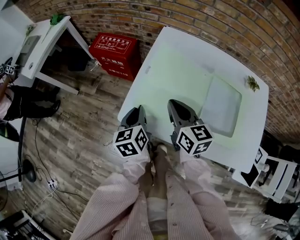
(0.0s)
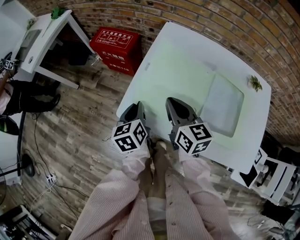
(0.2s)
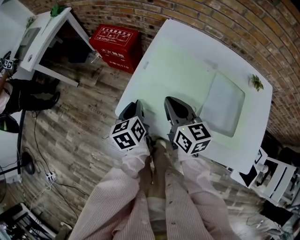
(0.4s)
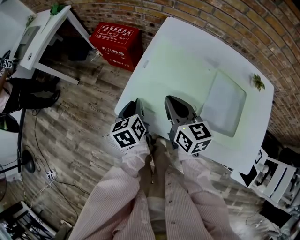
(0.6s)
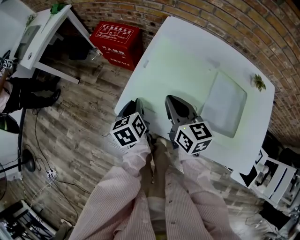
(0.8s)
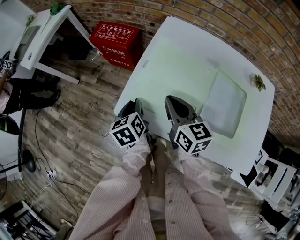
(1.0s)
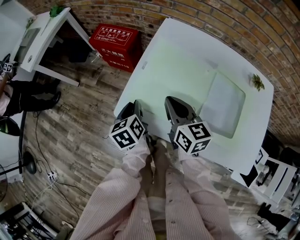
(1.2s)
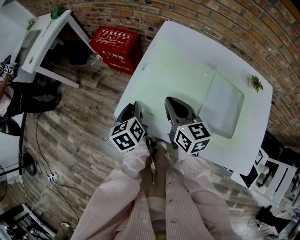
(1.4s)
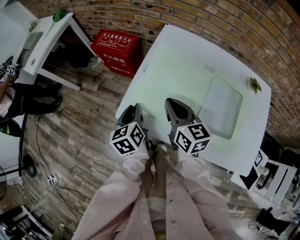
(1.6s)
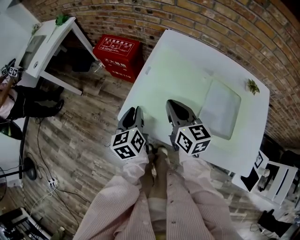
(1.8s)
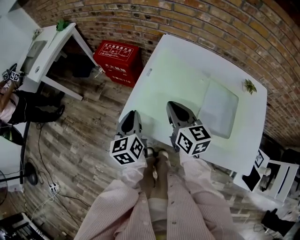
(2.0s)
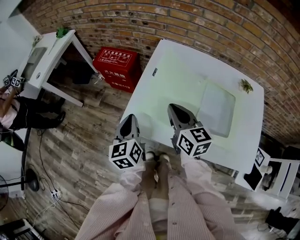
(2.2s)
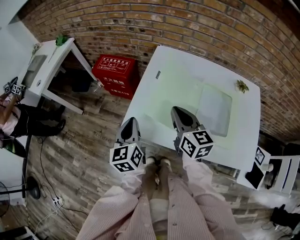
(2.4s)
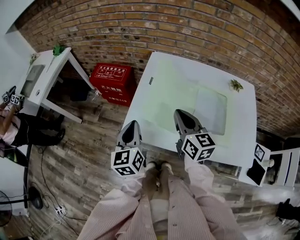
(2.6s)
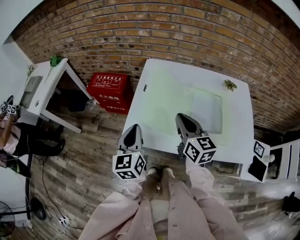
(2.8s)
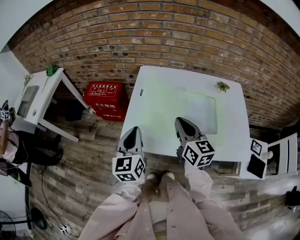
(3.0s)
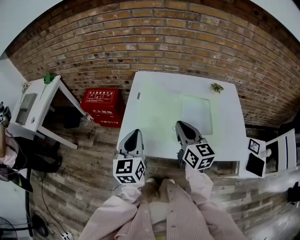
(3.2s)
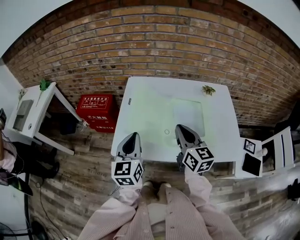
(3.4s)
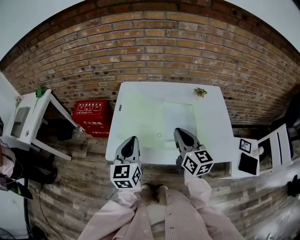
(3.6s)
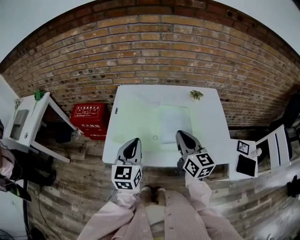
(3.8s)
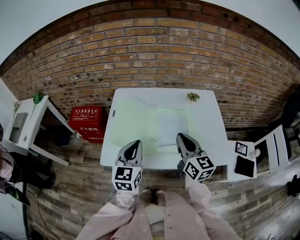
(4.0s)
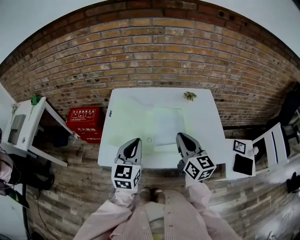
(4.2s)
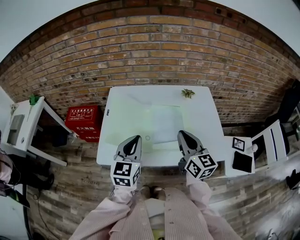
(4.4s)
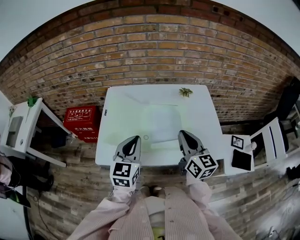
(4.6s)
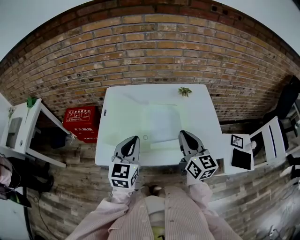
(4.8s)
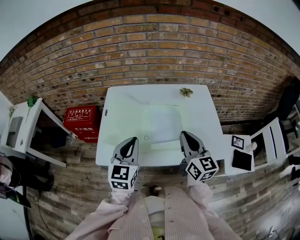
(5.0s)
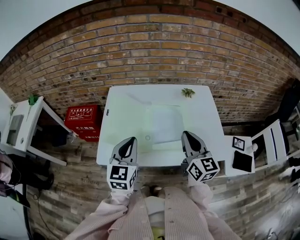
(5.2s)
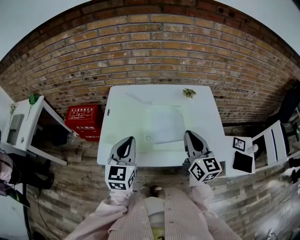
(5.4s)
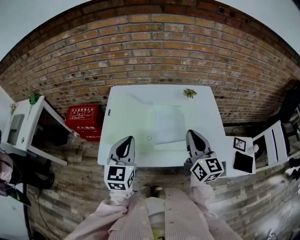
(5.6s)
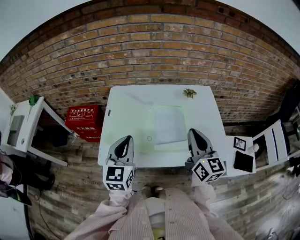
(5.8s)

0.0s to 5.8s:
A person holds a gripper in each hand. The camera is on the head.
0.0s to 1.4s: There are only small adjustments of the grippers.
1.4s to 2.8s: The right gripper heads upward, backward and to the right, covering about 10 cm, while the left gripper heads upward, covering roughly 15 cm, and turns by roughly 40 degrees.
2.8s to 4.4s: Both grippers travel together to the right, some 20 cm. The left gripper rotates approximately 30 degrees.
4.4s to 5.8s: The grippers stay close to where they were, moving slightly.

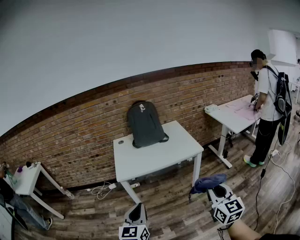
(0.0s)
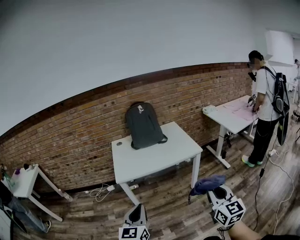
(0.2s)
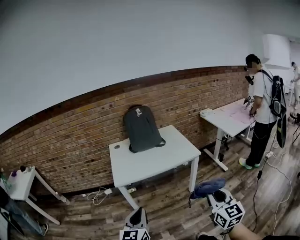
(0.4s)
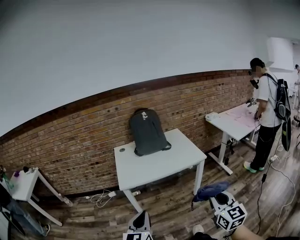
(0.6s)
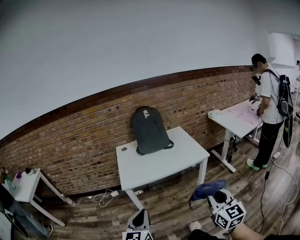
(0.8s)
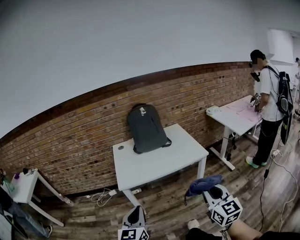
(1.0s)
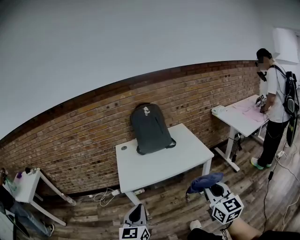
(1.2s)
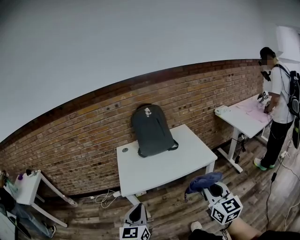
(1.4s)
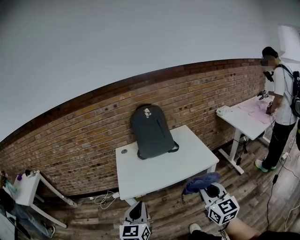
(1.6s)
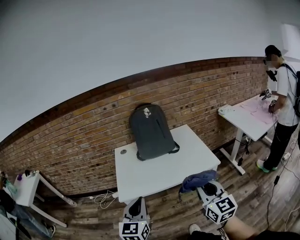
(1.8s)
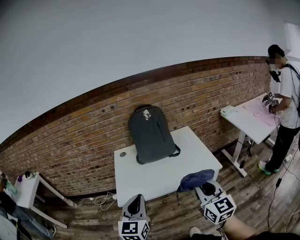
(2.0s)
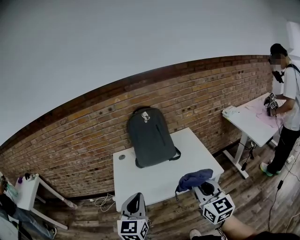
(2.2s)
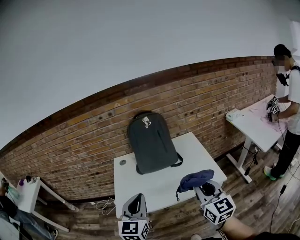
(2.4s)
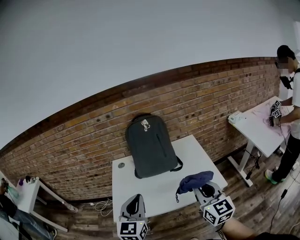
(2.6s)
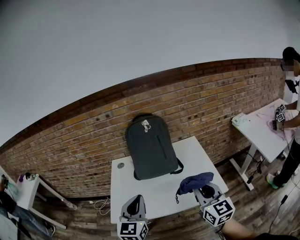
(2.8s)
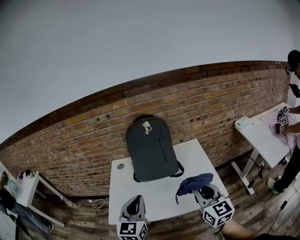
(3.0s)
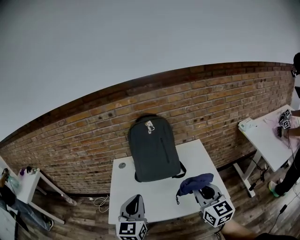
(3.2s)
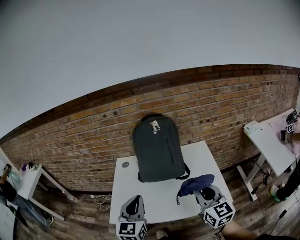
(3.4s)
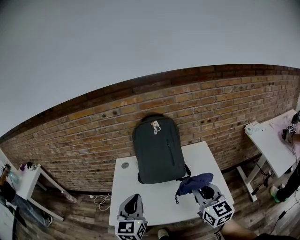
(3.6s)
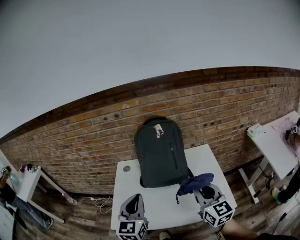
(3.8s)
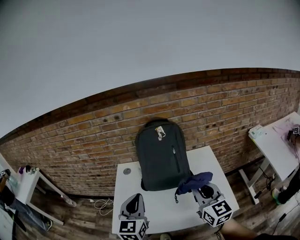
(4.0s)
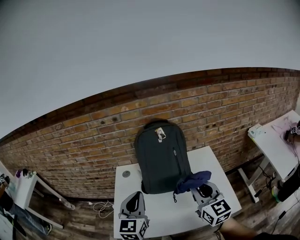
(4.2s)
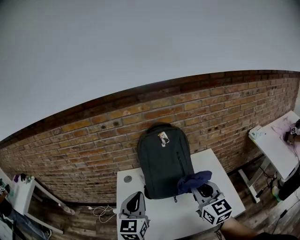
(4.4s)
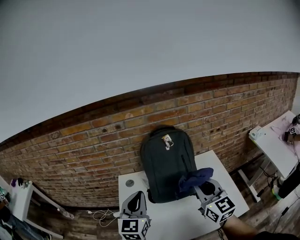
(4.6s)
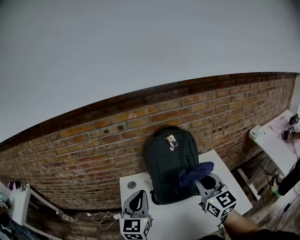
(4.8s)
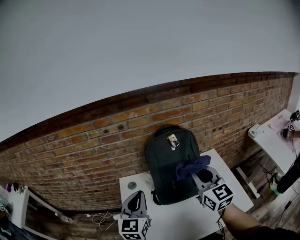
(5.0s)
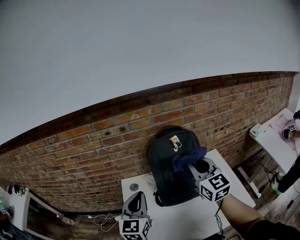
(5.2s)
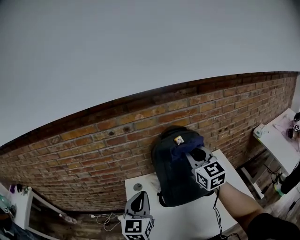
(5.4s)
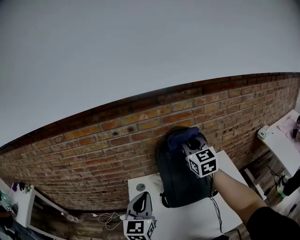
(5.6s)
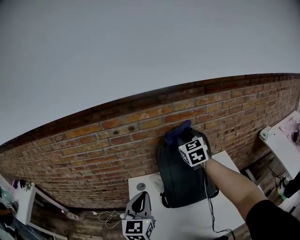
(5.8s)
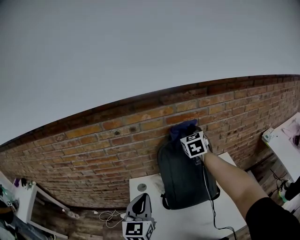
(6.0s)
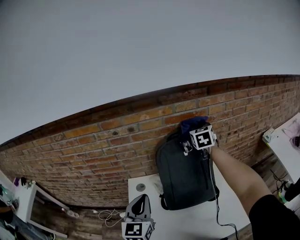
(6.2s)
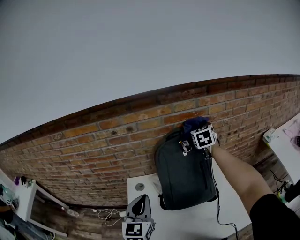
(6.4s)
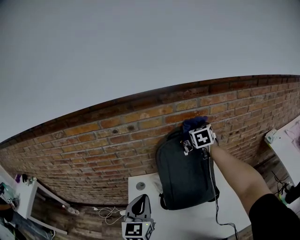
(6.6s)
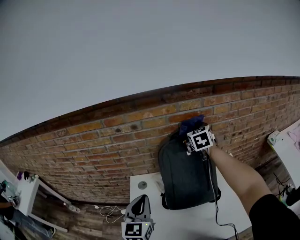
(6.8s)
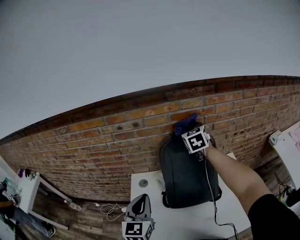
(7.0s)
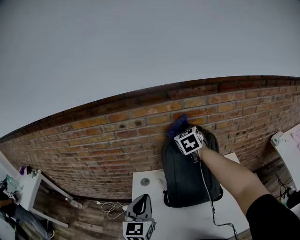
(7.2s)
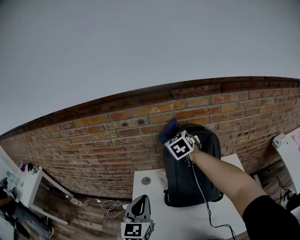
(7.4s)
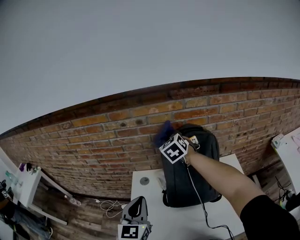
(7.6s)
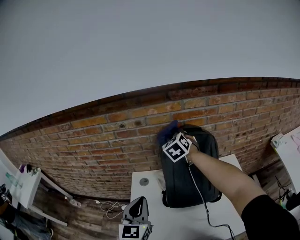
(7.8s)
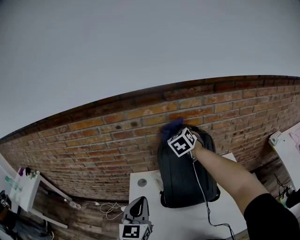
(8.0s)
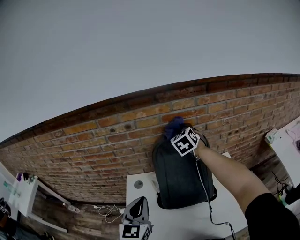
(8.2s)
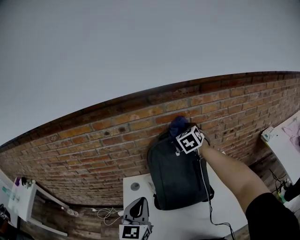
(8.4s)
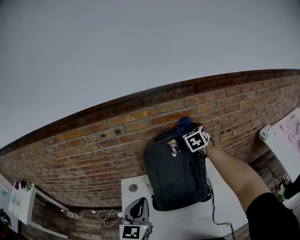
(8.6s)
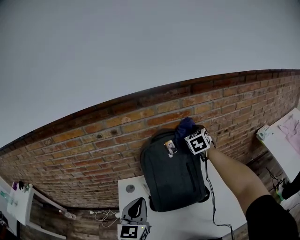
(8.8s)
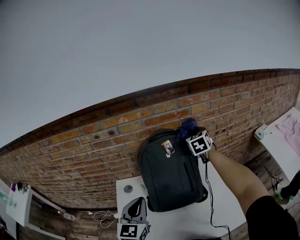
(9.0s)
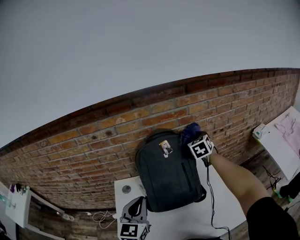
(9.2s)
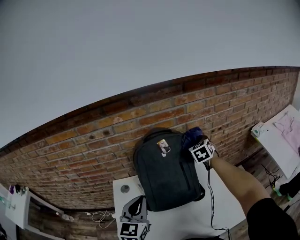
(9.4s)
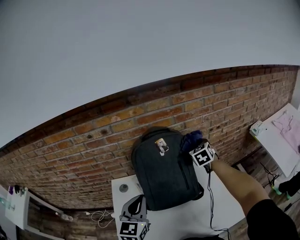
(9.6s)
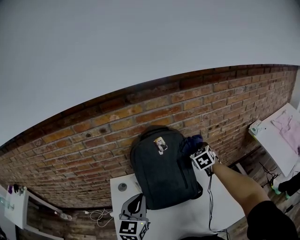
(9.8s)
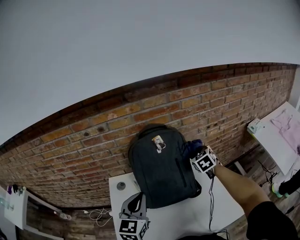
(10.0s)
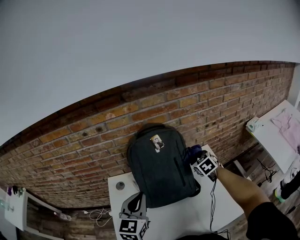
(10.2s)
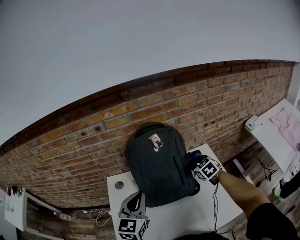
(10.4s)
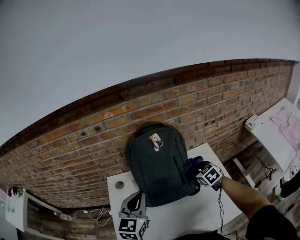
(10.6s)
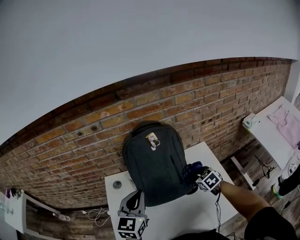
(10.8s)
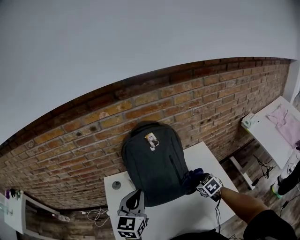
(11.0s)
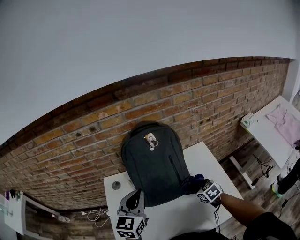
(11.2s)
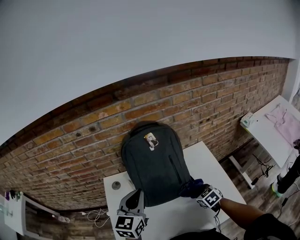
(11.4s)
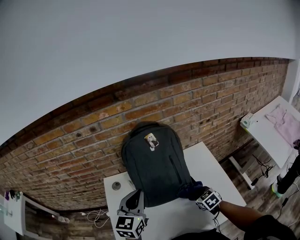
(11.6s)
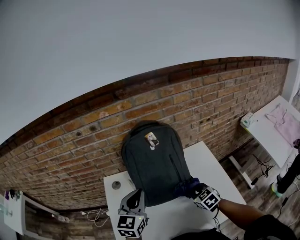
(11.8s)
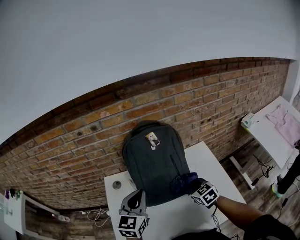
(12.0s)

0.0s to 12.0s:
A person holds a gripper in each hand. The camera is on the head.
0.0s to 1.6s: The right gripper goes some 20 cm forward and to the left; the left gripper goes some 15 cm forward.
1.6s to 3.0s: Both grippers move forward, approximately 25 cm.
3.0s to 4.4s: The two grippers go approximately 15 cm forward and to the left.
4.4s to 6.0s: The left gripper goes roughly 10 cm forward and to the left; the right gripper shifts roughly 35 cm forward, and turns by some 20 degrees.
6.0s to 7.6s: The right gripper travels to the left by about 15 cm, and changes its angle by roughly 30 degrees.
7.6s to 9.0s: The left gripper shifts approximately 10 cm to the right. The right gripper is displaced to the right by approximately 30 cm, and rotates some 30 degrees.
9.0s to 10.4s: The right gripper heads downward and backward, covering approximately 20 cm, and rotates some 20 degrees.
10.4s to 12.0s: The right gripper travels backward and to the left by approximately 15 cm.

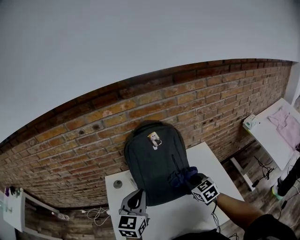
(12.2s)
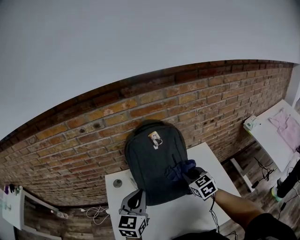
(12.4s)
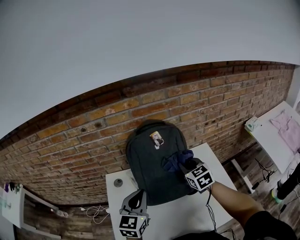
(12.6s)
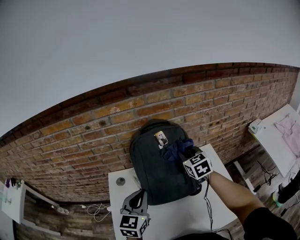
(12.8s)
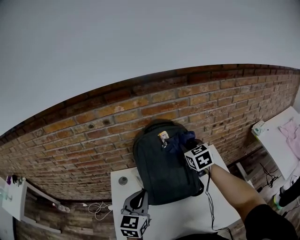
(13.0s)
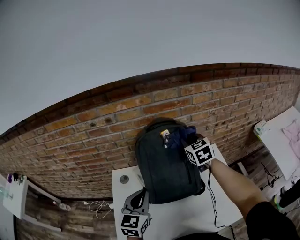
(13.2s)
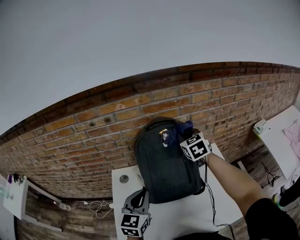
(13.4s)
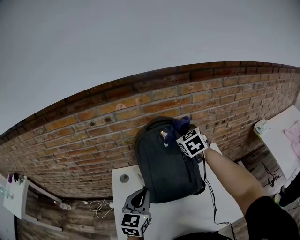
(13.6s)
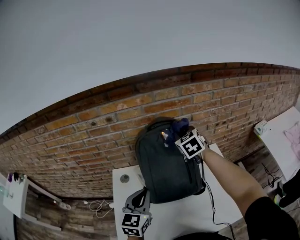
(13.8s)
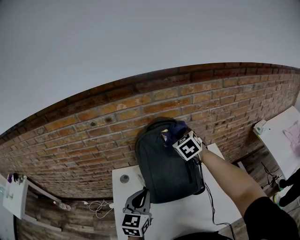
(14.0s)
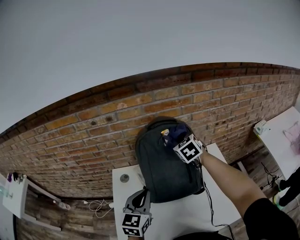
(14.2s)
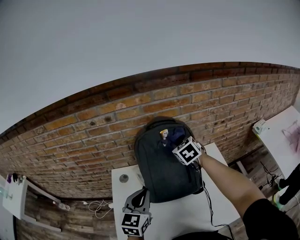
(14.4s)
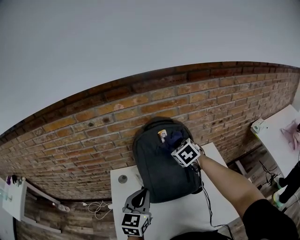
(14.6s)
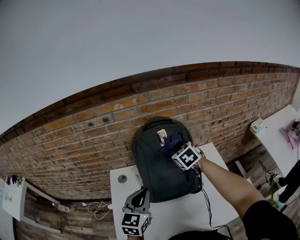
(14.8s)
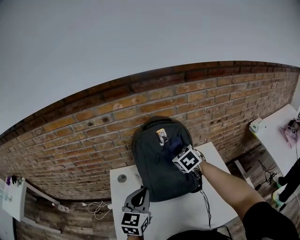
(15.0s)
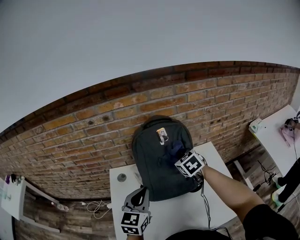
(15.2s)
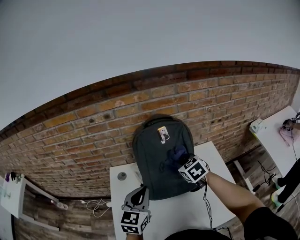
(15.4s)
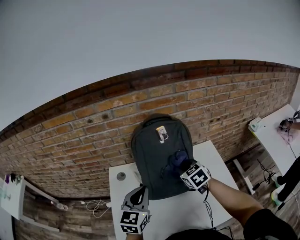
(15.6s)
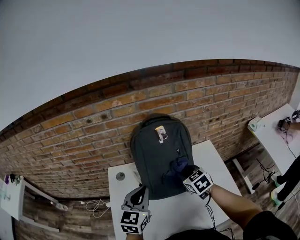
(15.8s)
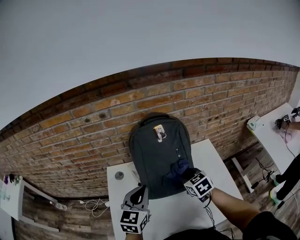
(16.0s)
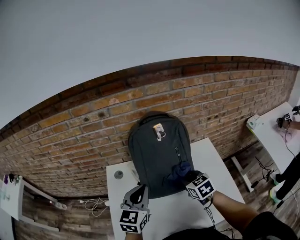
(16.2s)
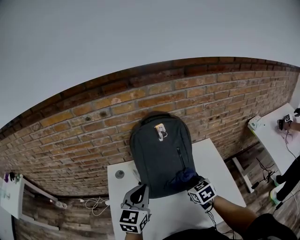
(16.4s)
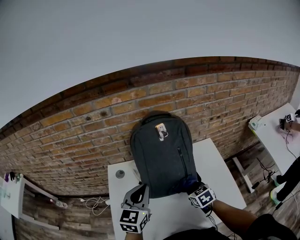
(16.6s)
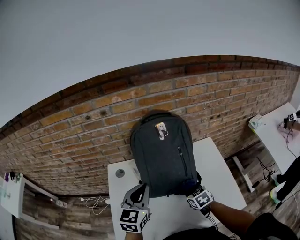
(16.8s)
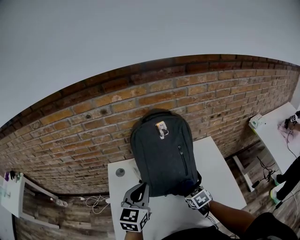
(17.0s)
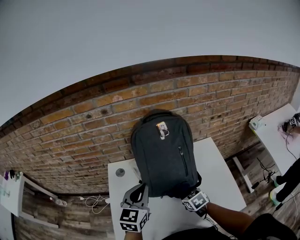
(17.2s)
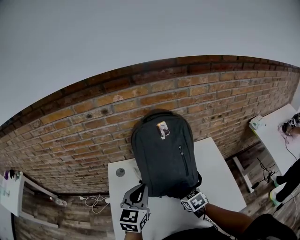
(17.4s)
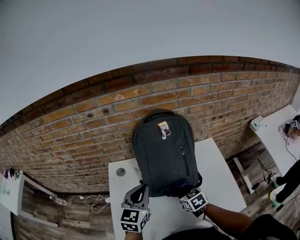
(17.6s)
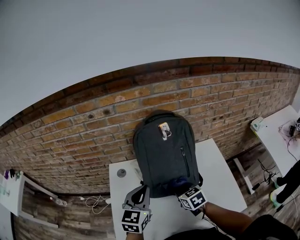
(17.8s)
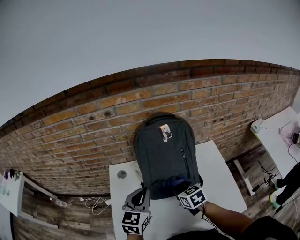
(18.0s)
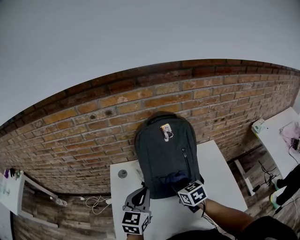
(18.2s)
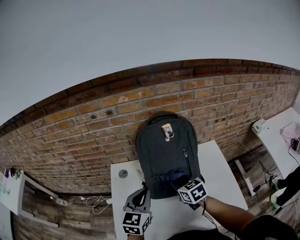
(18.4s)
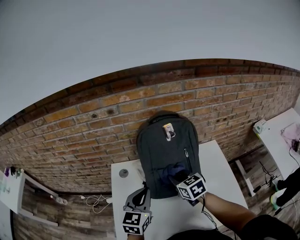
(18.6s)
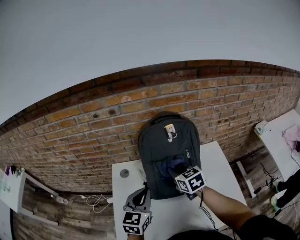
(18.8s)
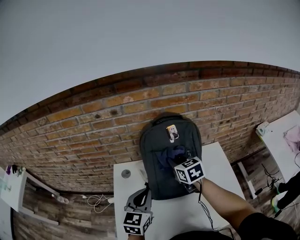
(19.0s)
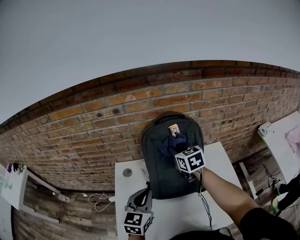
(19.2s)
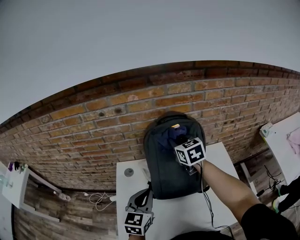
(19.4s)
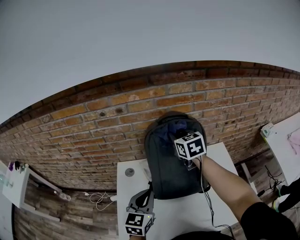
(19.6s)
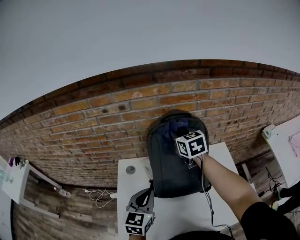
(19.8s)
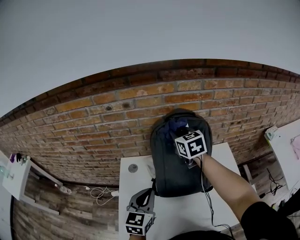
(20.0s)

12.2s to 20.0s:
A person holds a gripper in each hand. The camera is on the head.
12.2s to 13.8s: The right gripper travels forward and upward by some 25 cm.
13.8s to 15.4s: The right gripper moves backward and downward, approximately 15 cm.
15.4s to 16.8s: The right gripper travels downward and backward by about 20 cm.
16.8s to 18.4s: The right gripper shifts some 15 cm upward, to the left and forward.
18.4s to 20.0s: The right gripper heads forward and upward, covering some 25 cm.
